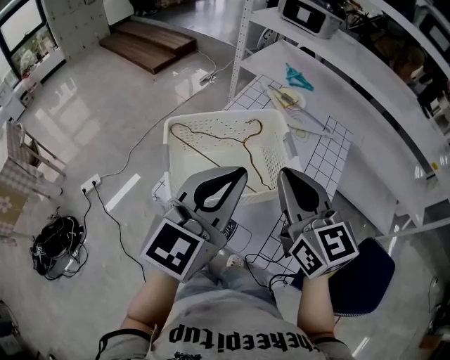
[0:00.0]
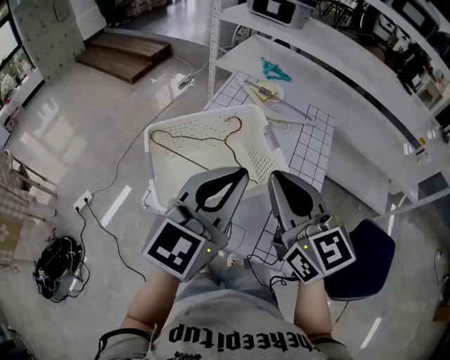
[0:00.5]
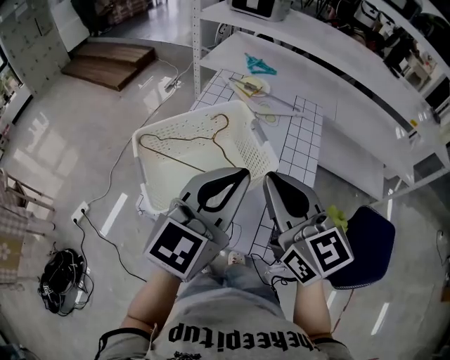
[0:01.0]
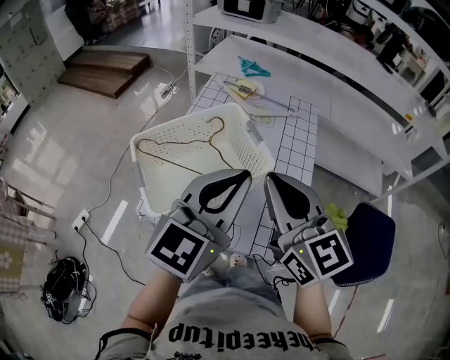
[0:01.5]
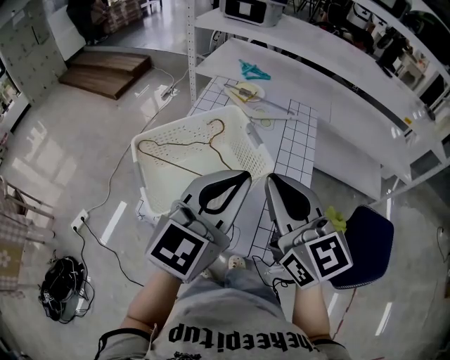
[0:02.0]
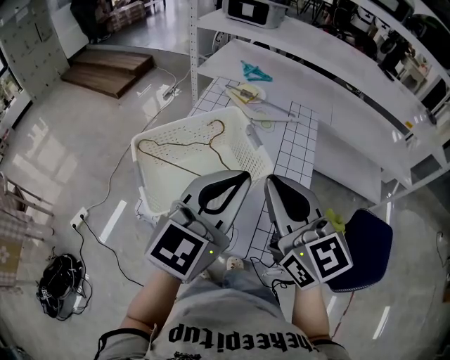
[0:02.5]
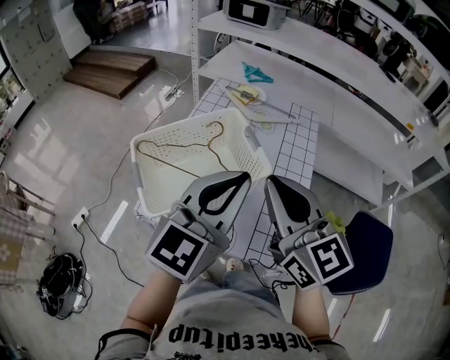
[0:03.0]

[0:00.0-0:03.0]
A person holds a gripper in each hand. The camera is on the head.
0:00.0 to 0:01.5: The right gripper moves approximately 5 cm. Meanwhile the left gripper shifts approximately 5 cm to the right.
0:01.5 to 0:03.0: The grippers move only a little.

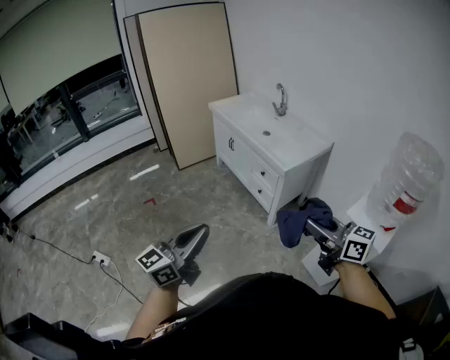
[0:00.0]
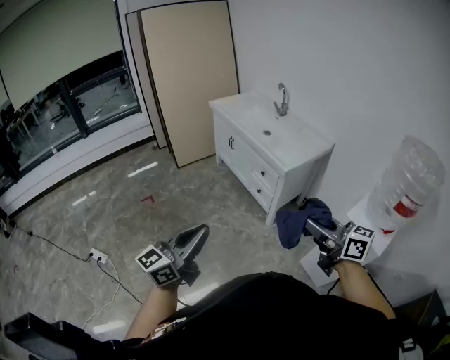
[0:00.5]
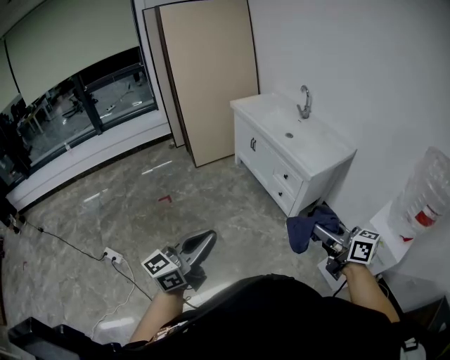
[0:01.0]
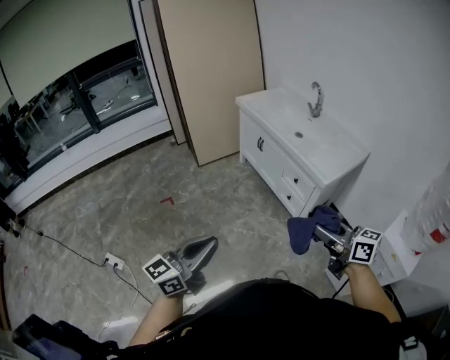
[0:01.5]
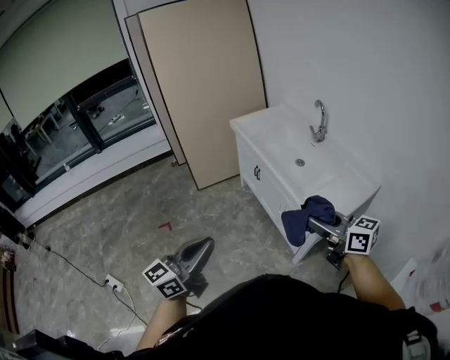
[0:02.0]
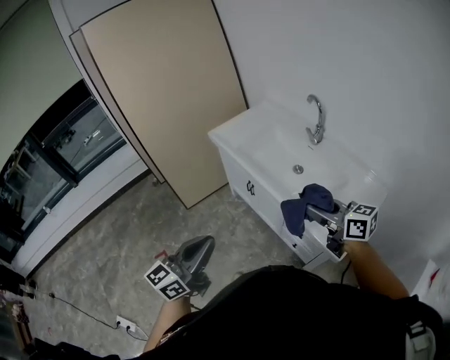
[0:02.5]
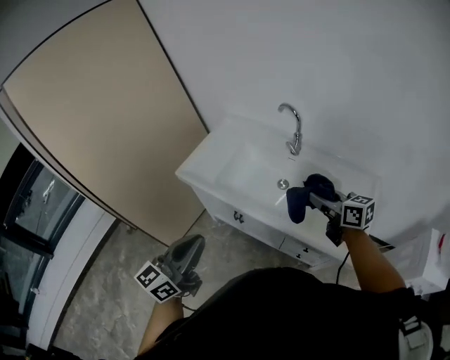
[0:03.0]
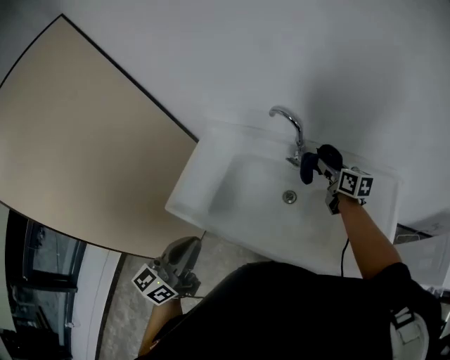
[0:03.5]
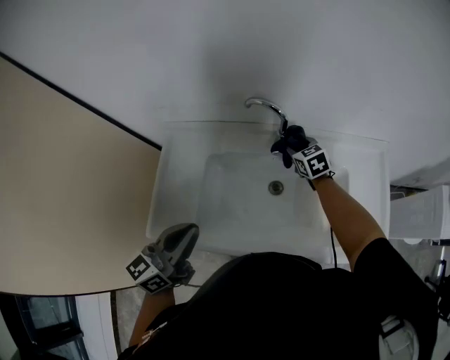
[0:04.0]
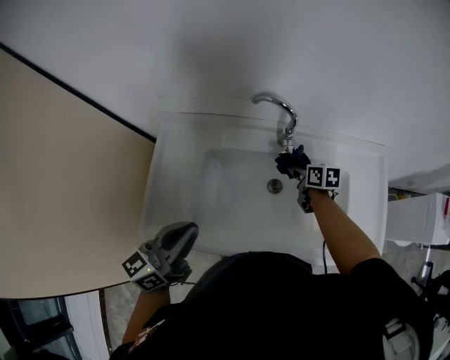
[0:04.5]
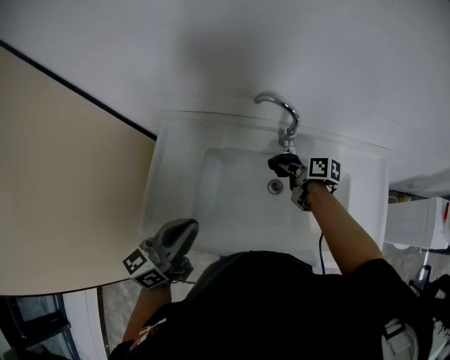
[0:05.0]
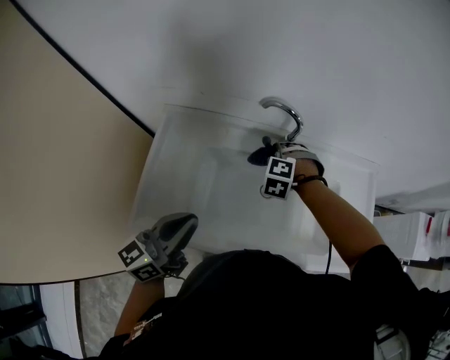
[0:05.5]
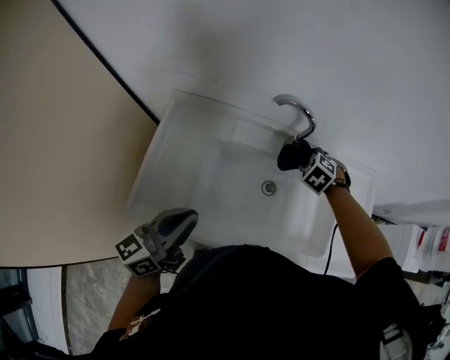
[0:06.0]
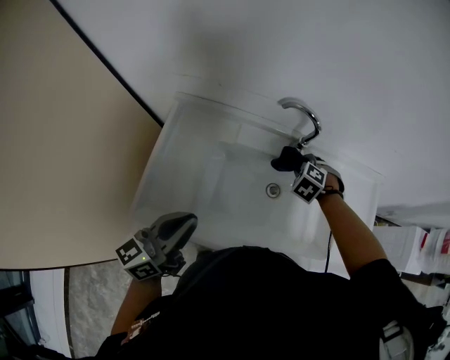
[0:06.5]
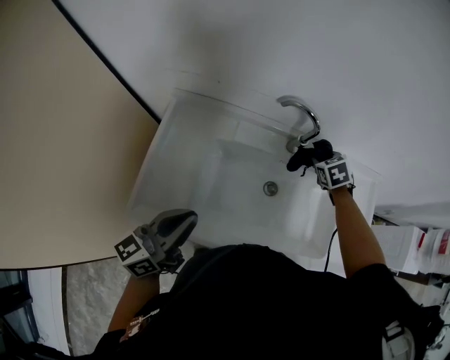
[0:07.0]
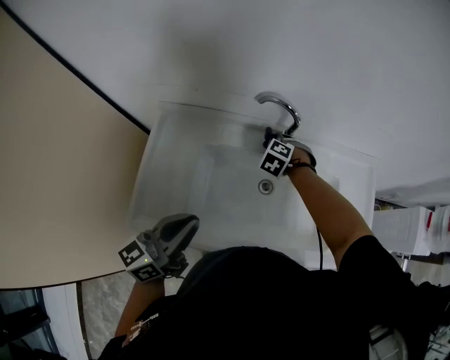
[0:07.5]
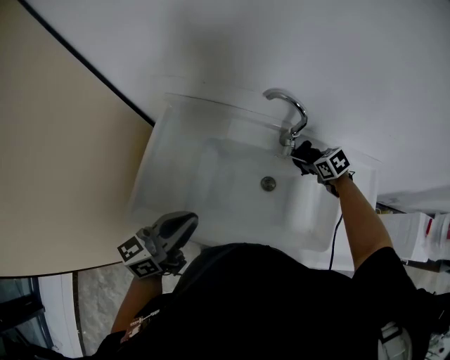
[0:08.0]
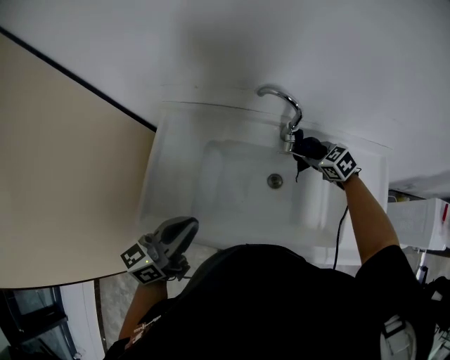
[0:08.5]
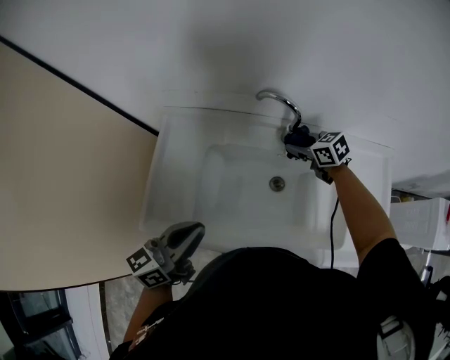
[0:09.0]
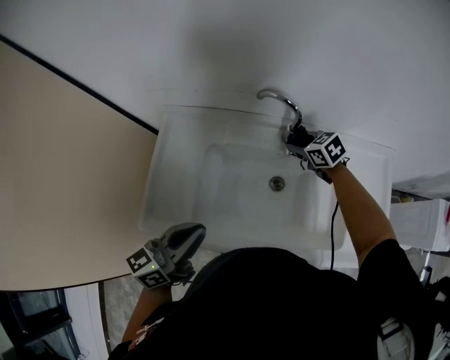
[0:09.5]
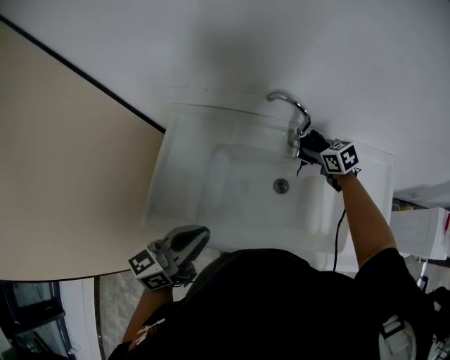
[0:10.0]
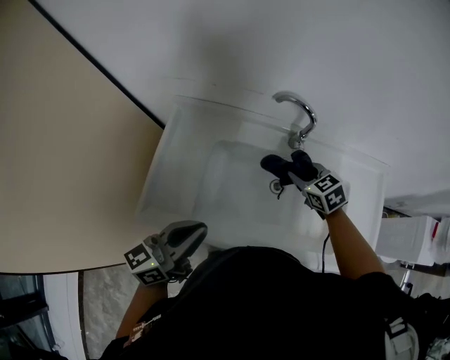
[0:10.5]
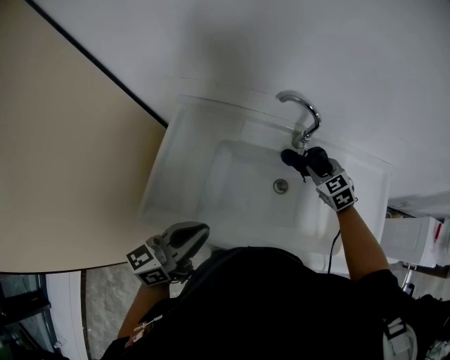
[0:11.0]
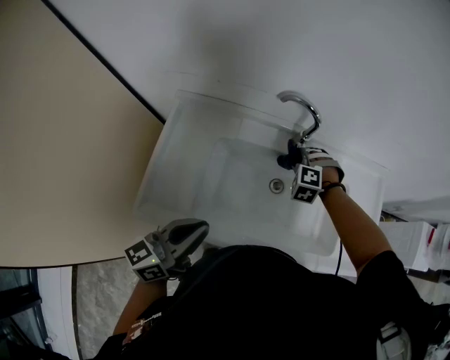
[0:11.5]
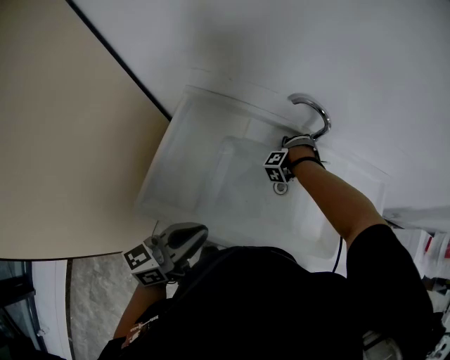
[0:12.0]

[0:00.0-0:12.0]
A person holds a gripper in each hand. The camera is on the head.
0:00.0 to 0:02.0: Both grippers travel together forward, approximately 40 cm.
0:02.0 to 0:04.0: The two grippers travel together, approximately 80 cm. The left gripper turns by roughly 60 degrees, while the right gripper tips its fingers downward by approximately 30 degrees.
0:04.0 to 0:06.0: The left gripper ends up some 5 cm from where it was. Meanwhile the right gripper swivels approximately 50 degrees.
0:06.0 to 0:08.0: The right gripper shifts about 5 cm downward, and changes its angle by approximately 40 degrees.
0:08.0 to 0:10.0: The right gripper is displaced upward by some 5 cm, and turns by about 20 degrees.
0:10.0 to 0:12.0: The right gripper travels downward by about 10 cm, and turns by some 110 degrees.

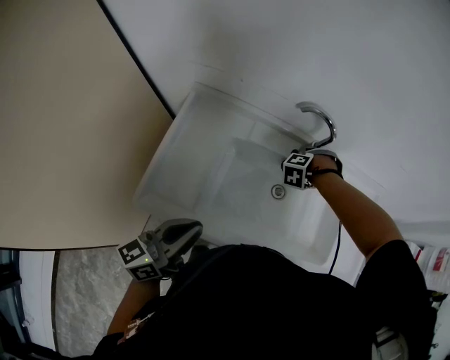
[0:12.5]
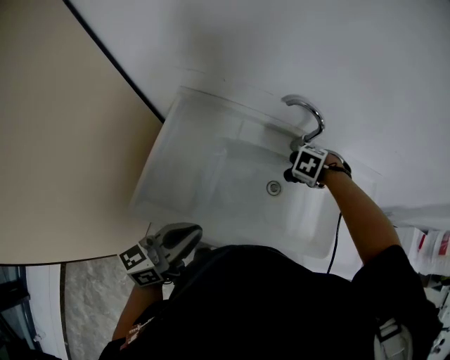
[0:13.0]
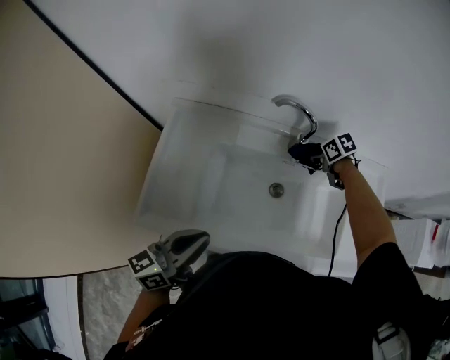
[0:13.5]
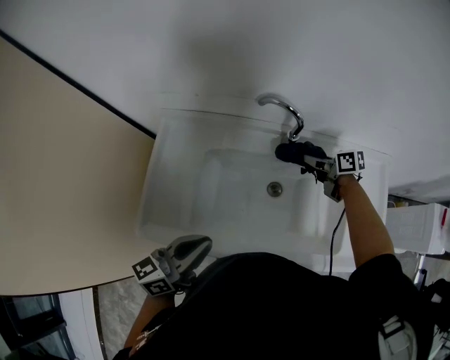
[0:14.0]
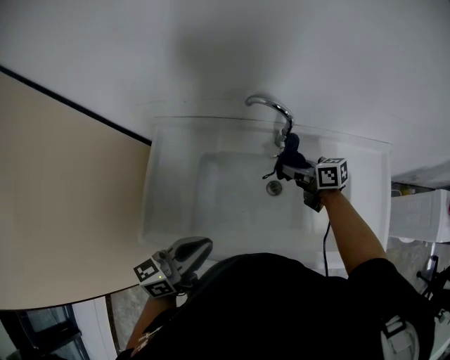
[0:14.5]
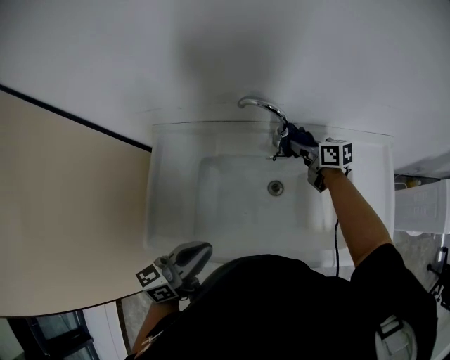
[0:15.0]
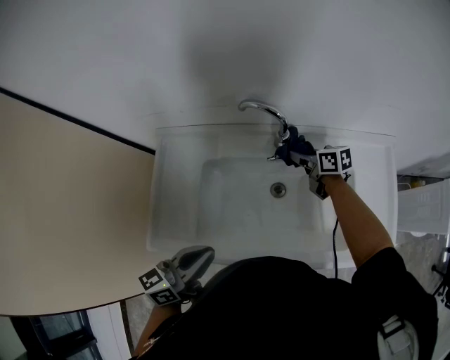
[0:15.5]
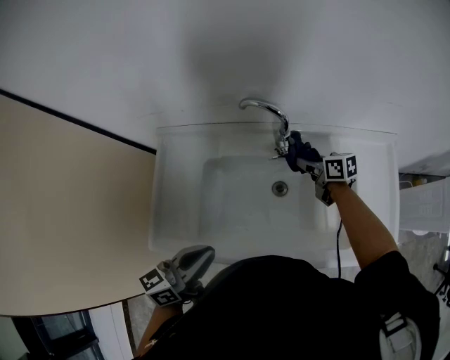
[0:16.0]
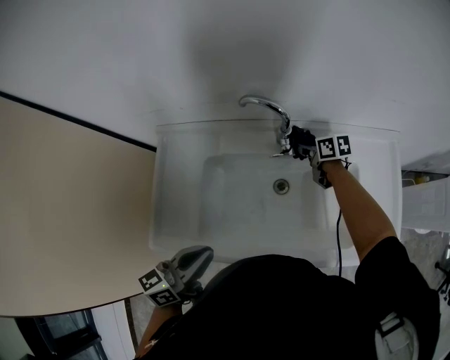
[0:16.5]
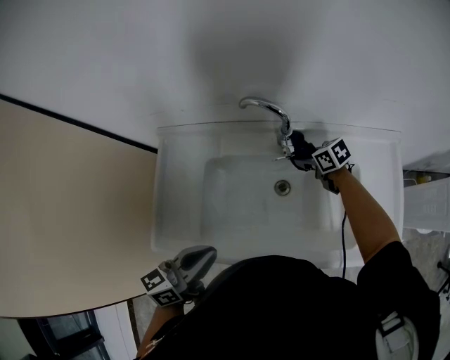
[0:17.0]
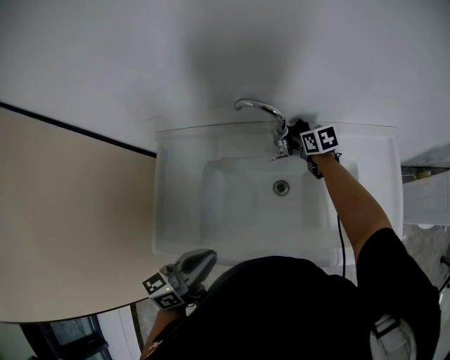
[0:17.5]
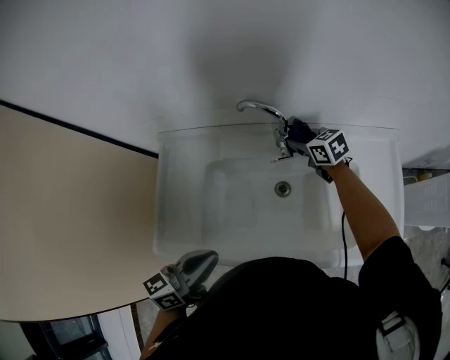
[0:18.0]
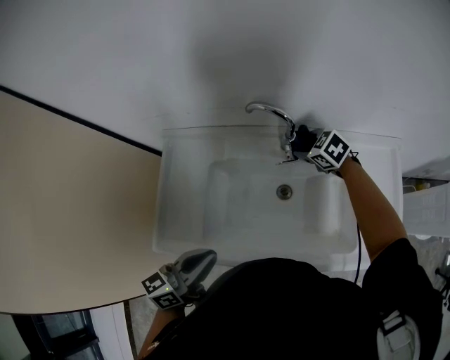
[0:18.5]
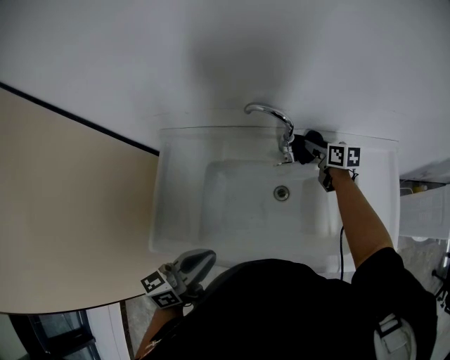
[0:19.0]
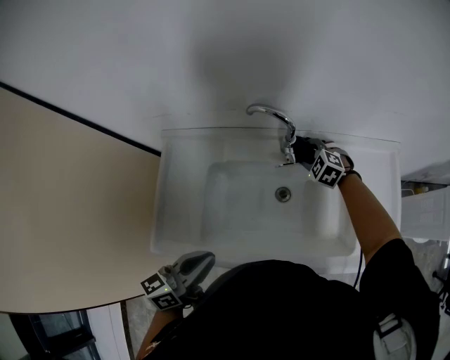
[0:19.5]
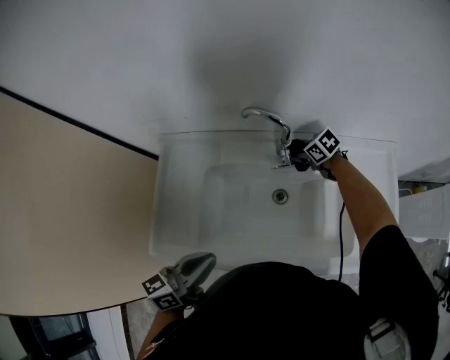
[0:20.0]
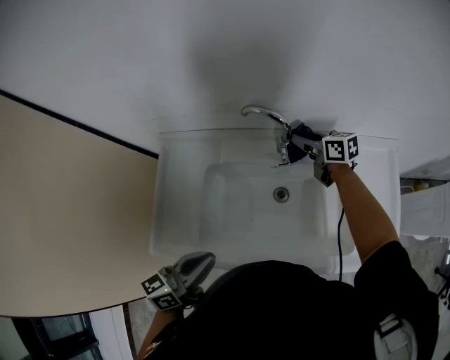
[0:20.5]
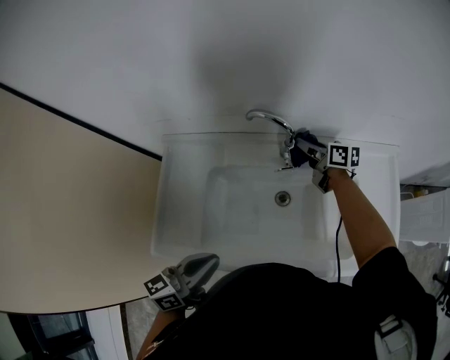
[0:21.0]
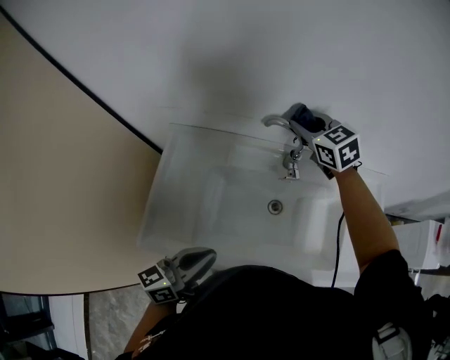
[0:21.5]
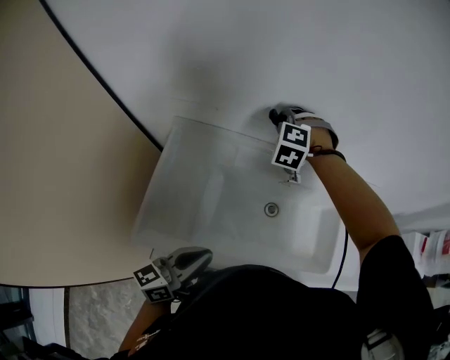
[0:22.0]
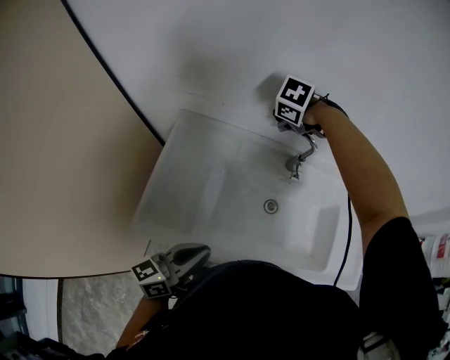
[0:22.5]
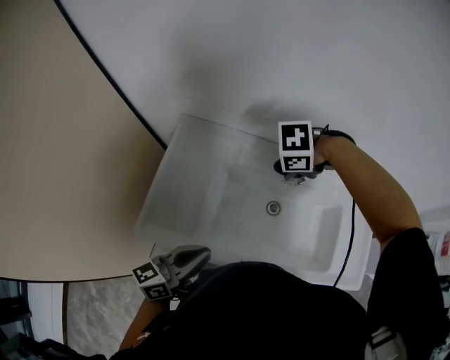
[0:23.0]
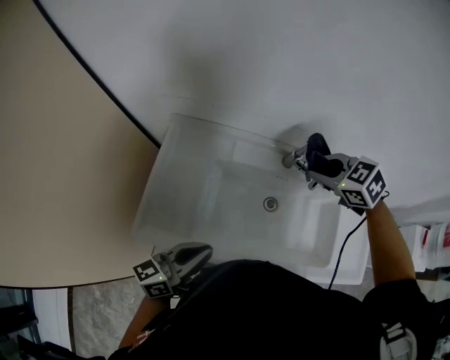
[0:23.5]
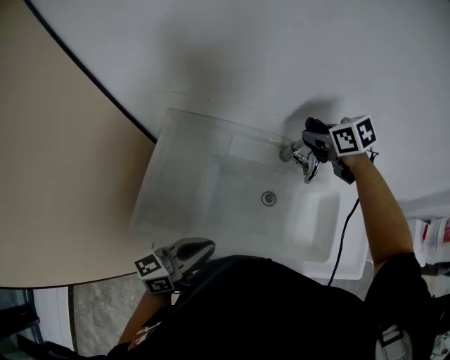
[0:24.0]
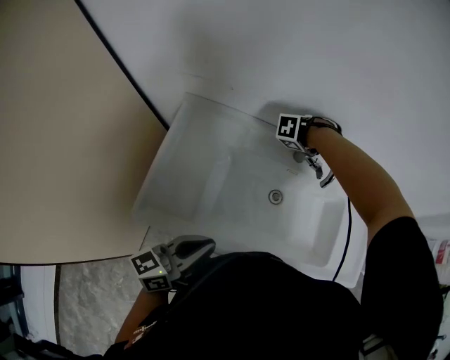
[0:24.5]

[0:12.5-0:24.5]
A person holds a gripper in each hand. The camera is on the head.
0:12.5 to 0:14.5: The right gripper tips its fingers upward by about 50 degrees. Meanwhile the left gripper shifts by about 10 cm.
0:14.5 to 0:16.5: The right gripper swings forward and backward, some 5 cm each way, with 2 reversals.
0:16.5 to 0:18.5: The right gripper swings forward and backward, about 10 cm each way, with 2 reversals, and twists approximately 50 degrees counterclockwise, seen from behind.
0:18.5 to 0:20.5: The right gripper moves approximately 5 cm, and points its fingers some 30 degrees further upward.
0:20.5 to 0:22.5: The left gripper shifts by some 10 cm. Meanwhile the right gripper moves some 20 cm, and tilts its fingers about 70 degrees downward.
0:22.5 to 0:24.5: The right gripper ends up about 15 cm from where it was, and changes its angle by some 30 degrees.
